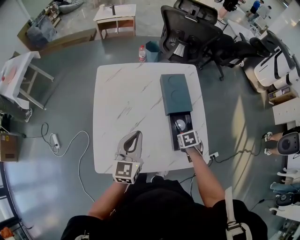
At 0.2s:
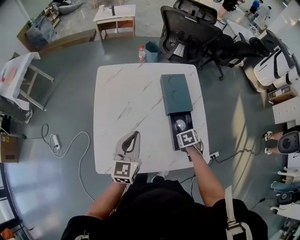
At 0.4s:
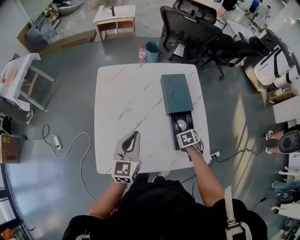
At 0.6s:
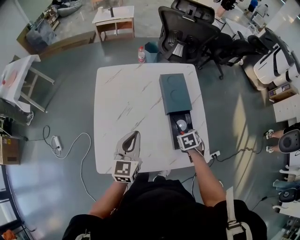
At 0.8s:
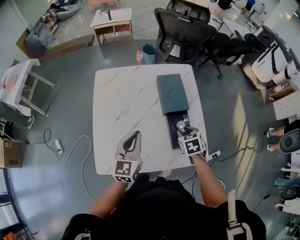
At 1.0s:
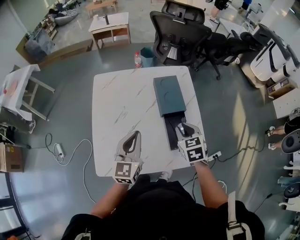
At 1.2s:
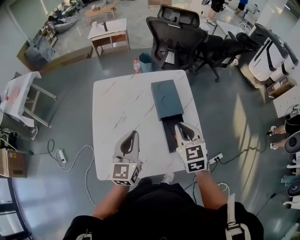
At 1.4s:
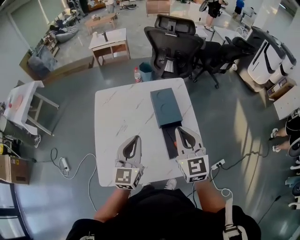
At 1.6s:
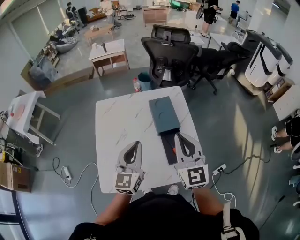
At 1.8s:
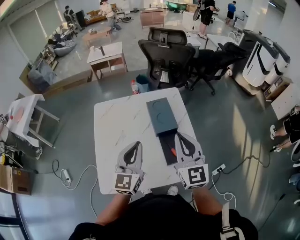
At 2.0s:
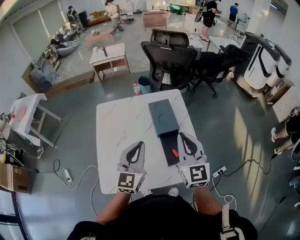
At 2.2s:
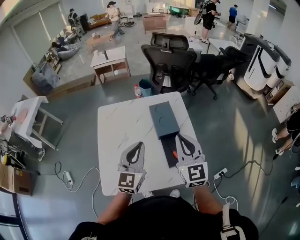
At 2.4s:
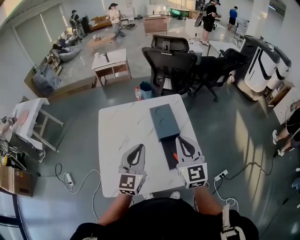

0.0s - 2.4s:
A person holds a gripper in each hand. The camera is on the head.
0.0s - 1.2s: The right gripper moves upward, roughly 25 cm, and angles its fingers upward, by approximately 40 degrees. Meanwhile the left gripper goes approximately 5 cm upward.
1.2s - 2.4s: The left gripper ends up about 5 cm from where it was; the right gripper moves upward, approximately 10 cm, and changes its angle by some 20 degrees.

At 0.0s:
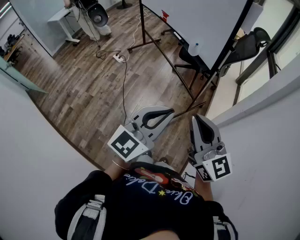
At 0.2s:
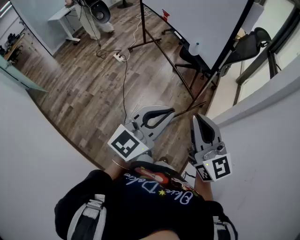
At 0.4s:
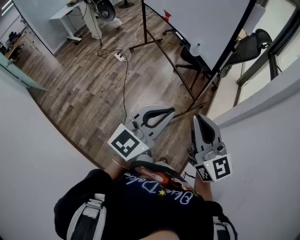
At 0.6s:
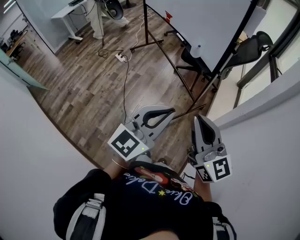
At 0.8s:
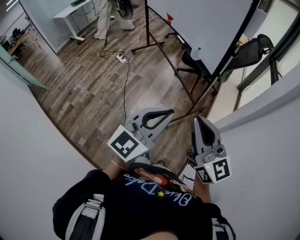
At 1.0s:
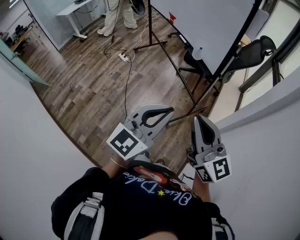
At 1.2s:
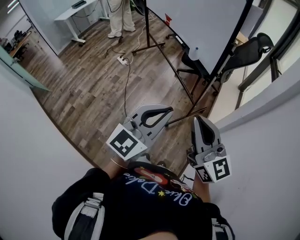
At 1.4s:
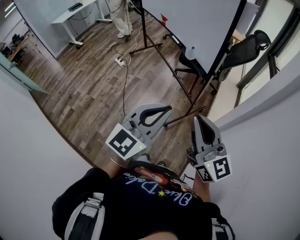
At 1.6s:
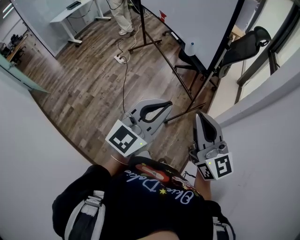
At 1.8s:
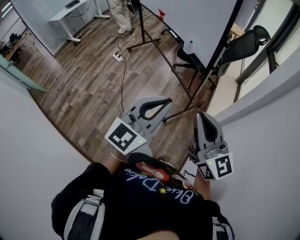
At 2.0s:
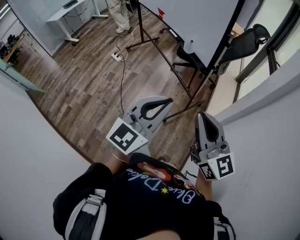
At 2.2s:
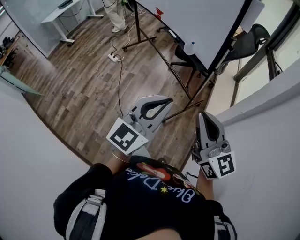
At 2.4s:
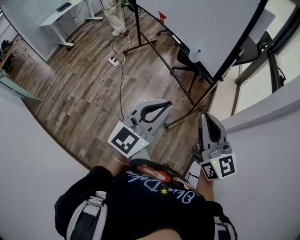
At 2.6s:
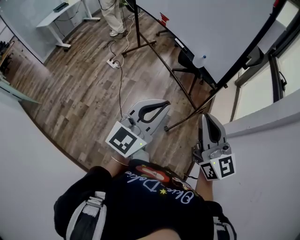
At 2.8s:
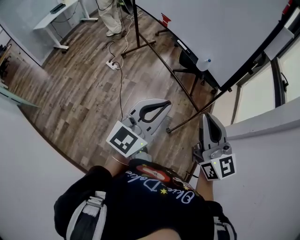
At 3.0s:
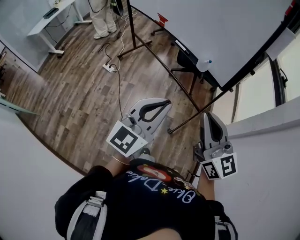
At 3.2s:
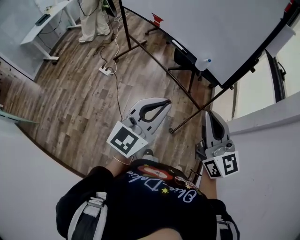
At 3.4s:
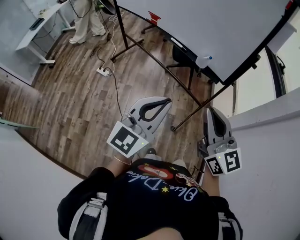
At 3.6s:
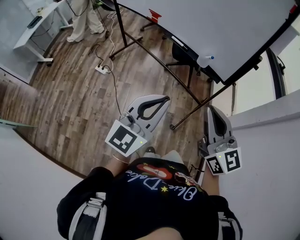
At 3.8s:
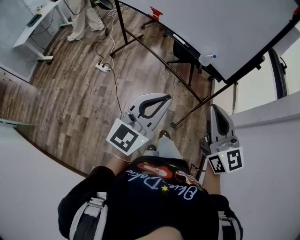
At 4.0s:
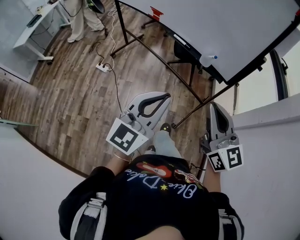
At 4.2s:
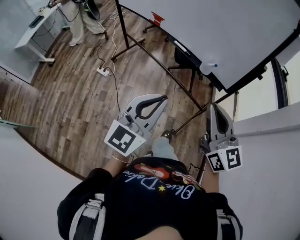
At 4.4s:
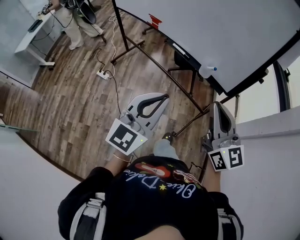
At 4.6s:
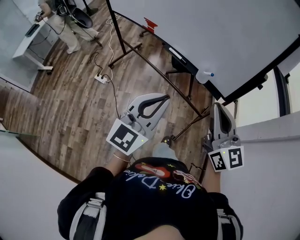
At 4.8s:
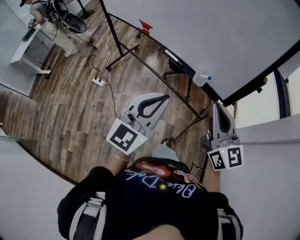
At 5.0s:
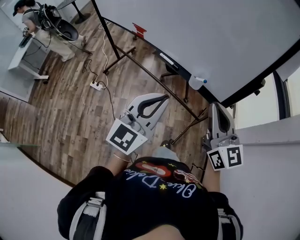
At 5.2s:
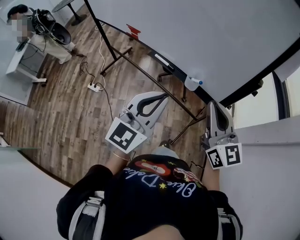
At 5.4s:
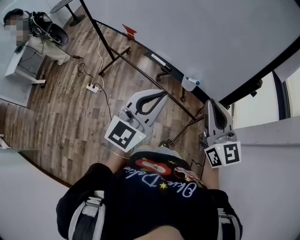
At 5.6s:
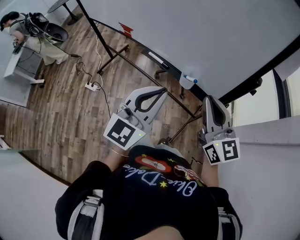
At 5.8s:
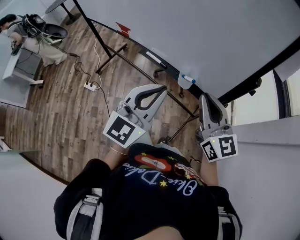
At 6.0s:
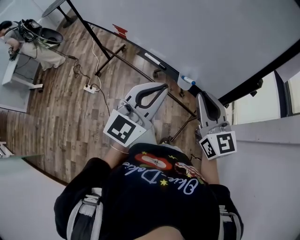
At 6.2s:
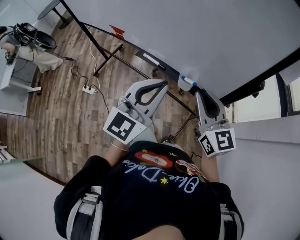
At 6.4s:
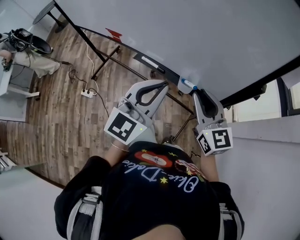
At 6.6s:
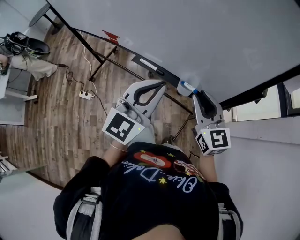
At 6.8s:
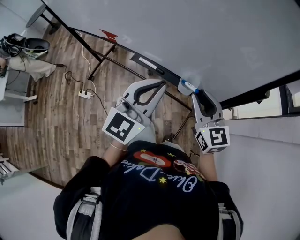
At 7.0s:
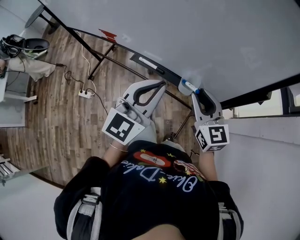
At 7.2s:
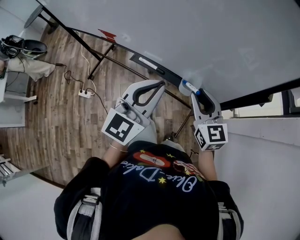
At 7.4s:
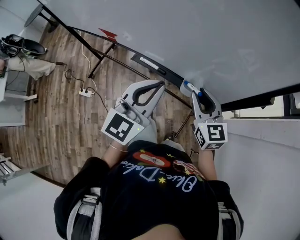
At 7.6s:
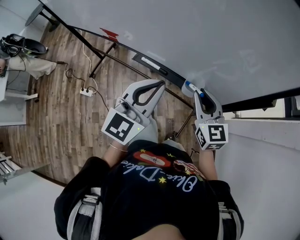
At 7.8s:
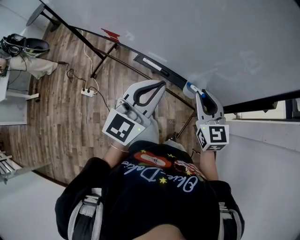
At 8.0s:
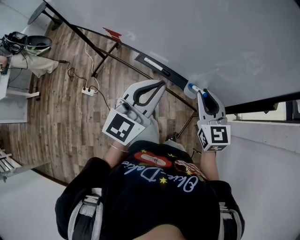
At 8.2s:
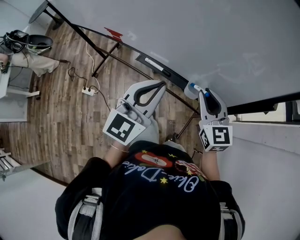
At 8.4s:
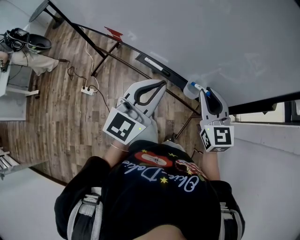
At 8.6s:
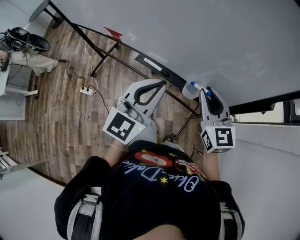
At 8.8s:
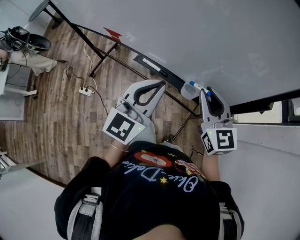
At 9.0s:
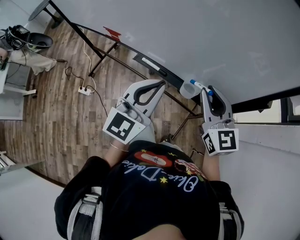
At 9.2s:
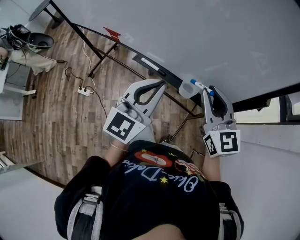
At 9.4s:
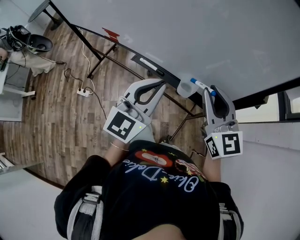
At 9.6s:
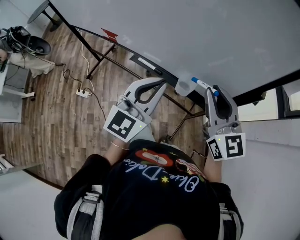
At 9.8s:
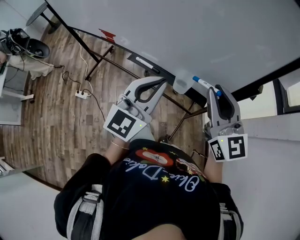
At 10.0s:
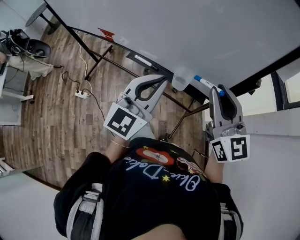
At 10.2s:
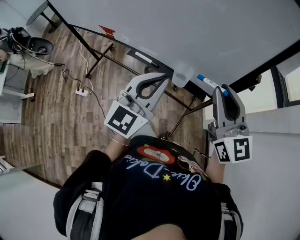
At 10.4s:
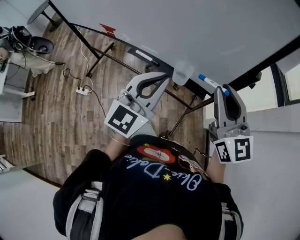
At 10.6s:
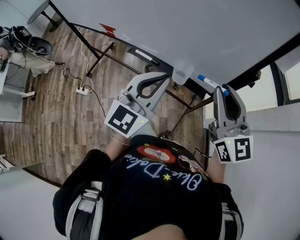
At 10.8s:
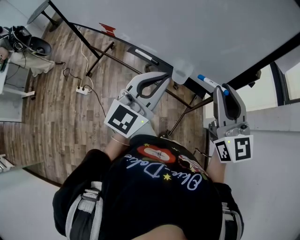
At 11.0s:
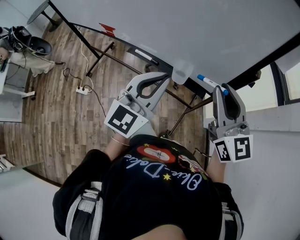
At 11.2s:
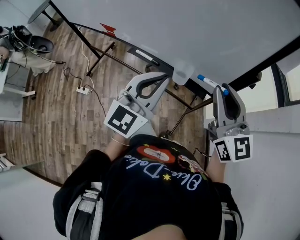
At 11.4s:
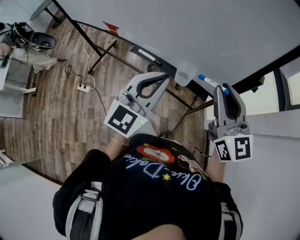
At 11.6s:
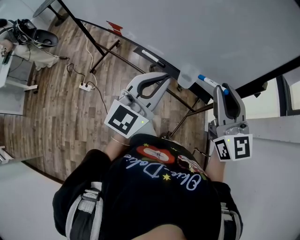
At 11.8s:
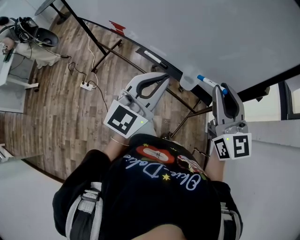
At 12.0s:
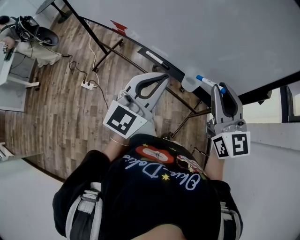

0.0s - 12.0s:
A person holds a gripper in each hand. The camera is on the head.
0.0s - 1.6s: The right gripper is displaced to the right by some 5 cm.
1.6s - 3.0s: The right gripper moves forward and to the left, about 20 cm; the left gripper goes roughly 25 cm to the left and forward.
3.0s - 4.4s: The left gripper is displaced forward and to the left by about 10 cm; the right gripper travels forward by some 10 cm.
4.4s - 6.0s: Both grippers move forward, some 20 cm.
6.0s - 7.6s: The right gripper moves downward and forward, some 10 cm; the left gripper heads forward, covering approximately 10 cm.
7.6s - 9.0s: The right gripper moves upward, about 10 cm.
9.0s - 10.4s: The left gripper goes approximately 5 cm to the right, while the right gripper moves upward, backward and to the right, some 10 cm.
10.4s - 12.0s: The right gripper ends up approximately 5 cm from where it was.

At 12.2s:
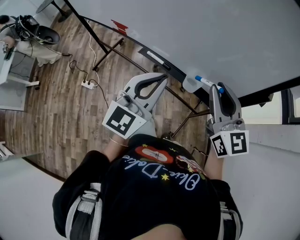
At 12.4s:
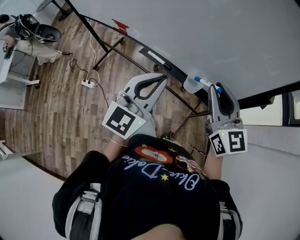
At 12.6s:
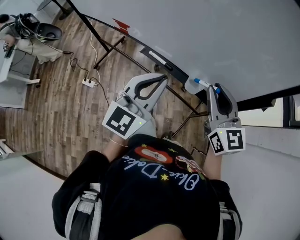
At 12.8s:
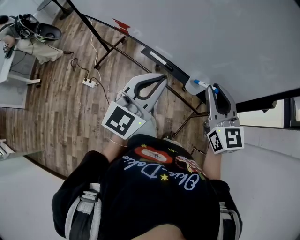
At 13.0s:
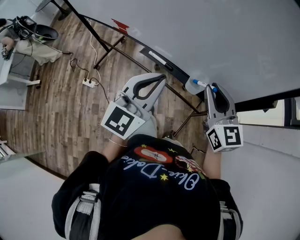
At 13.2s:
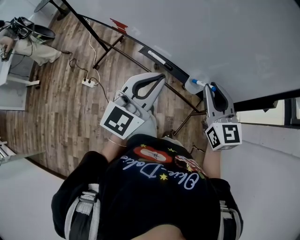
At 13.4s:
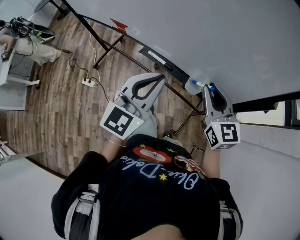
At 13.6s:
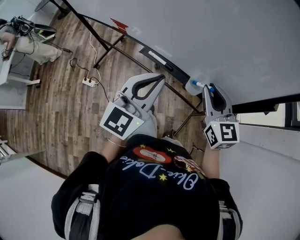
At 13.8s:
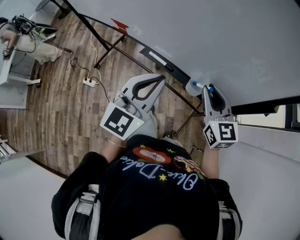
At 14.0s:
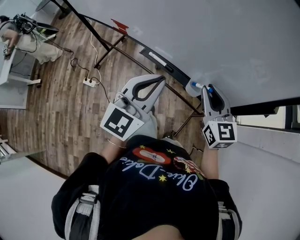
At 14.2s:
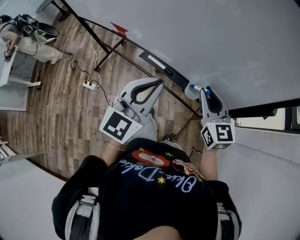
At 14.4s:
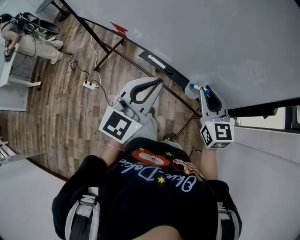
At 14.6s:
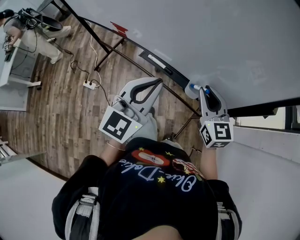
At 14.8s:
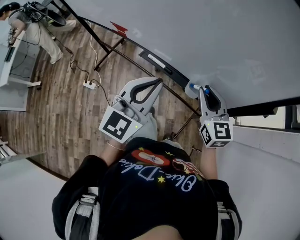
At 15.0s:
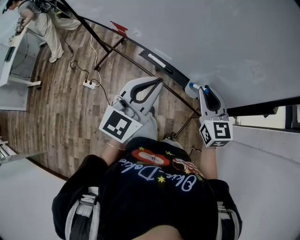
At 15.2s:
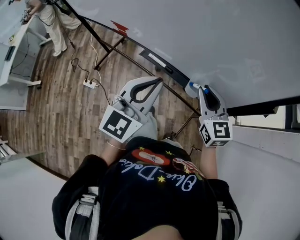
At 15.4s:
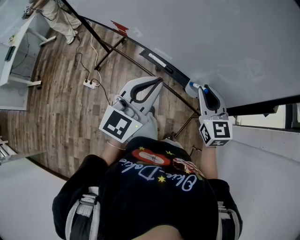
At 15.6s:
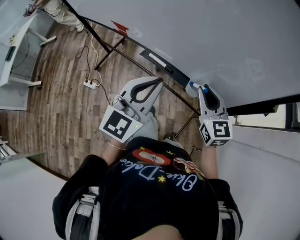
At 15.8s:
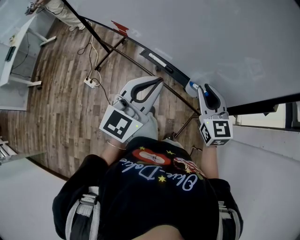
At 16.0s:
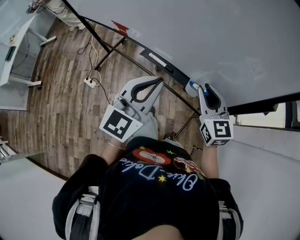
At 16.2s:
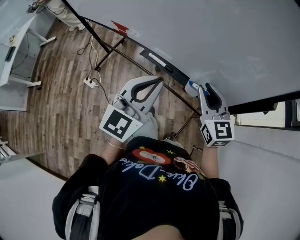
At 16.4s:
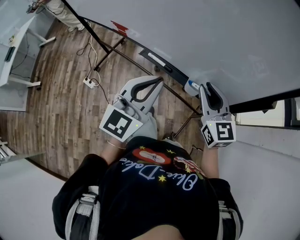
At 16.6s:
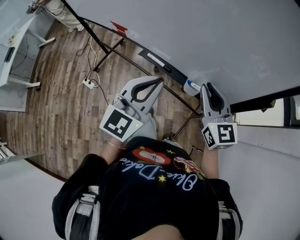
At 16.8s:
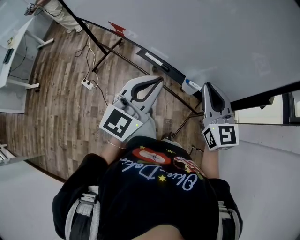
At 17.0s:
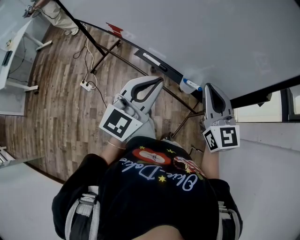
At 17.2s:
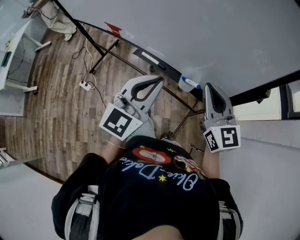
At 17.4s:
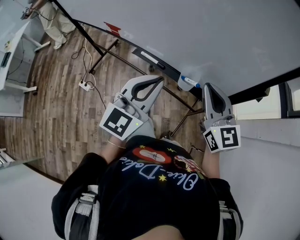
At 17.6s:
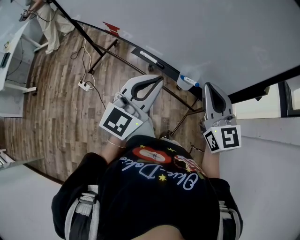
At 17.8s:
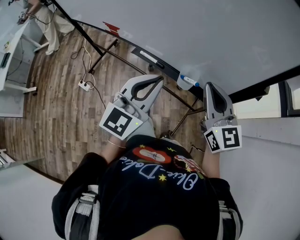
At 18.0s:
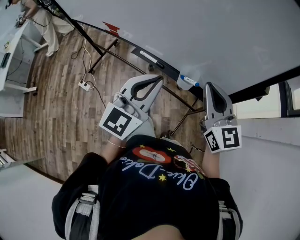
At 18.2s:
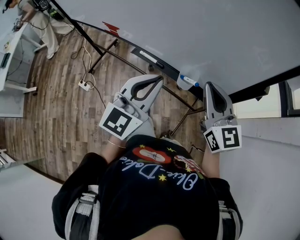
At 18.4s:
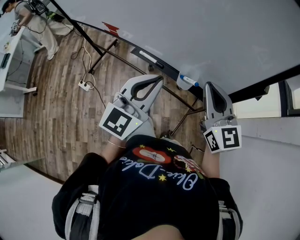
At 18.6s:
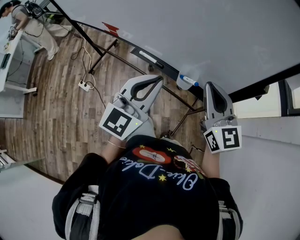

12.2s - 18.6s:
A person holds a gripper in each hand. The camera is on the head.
12.2s - 13.8s: The right gripper travels downward by about 10 cm.
13.8s - 15.4s: The grippers move only a little.
15.4s - 17.0s: The right gripper is displaced upward by approximately 5 cm.
17.0s - 18.6s: The grippers stay close to where they were, moving slightly.

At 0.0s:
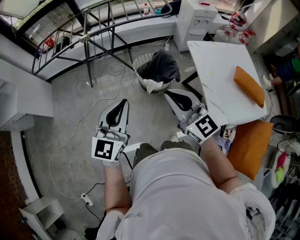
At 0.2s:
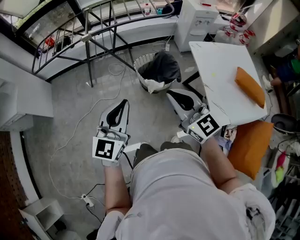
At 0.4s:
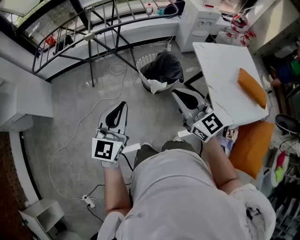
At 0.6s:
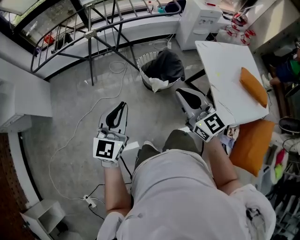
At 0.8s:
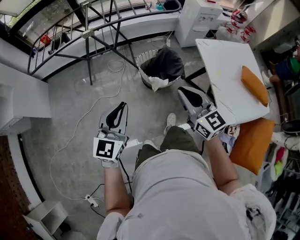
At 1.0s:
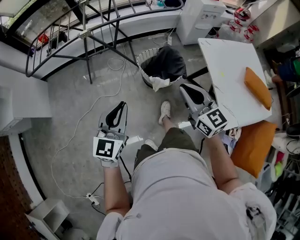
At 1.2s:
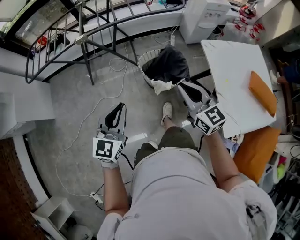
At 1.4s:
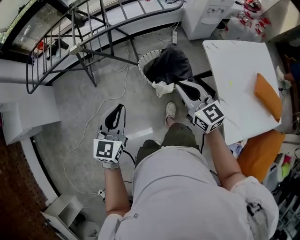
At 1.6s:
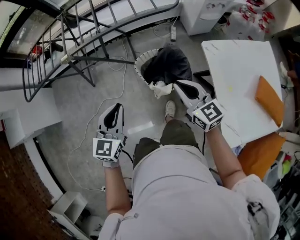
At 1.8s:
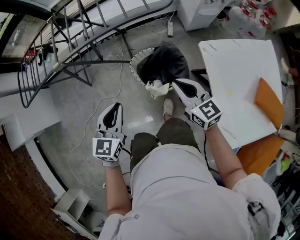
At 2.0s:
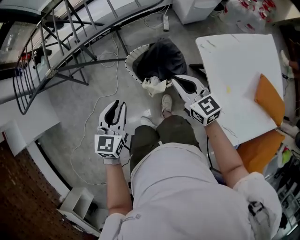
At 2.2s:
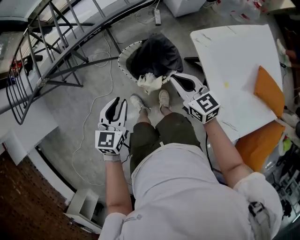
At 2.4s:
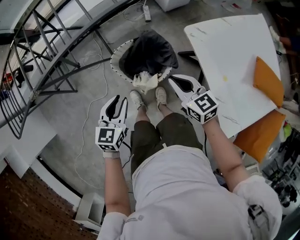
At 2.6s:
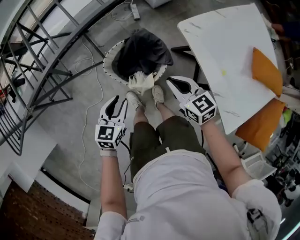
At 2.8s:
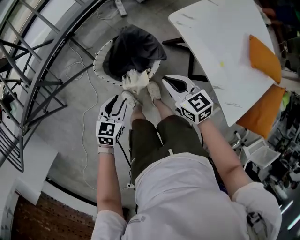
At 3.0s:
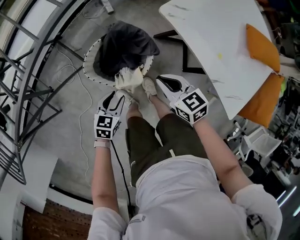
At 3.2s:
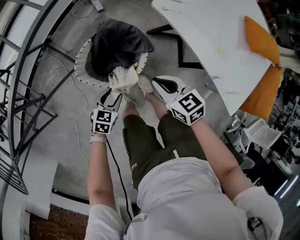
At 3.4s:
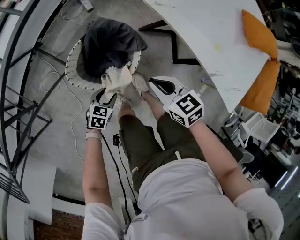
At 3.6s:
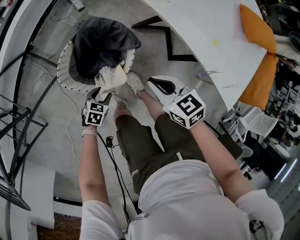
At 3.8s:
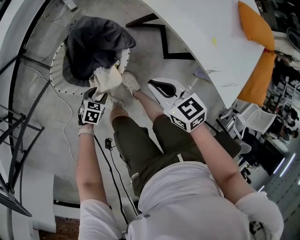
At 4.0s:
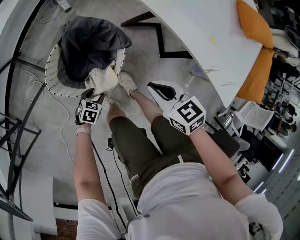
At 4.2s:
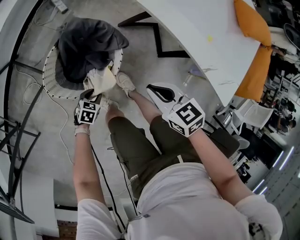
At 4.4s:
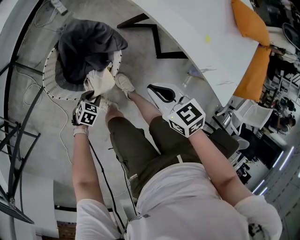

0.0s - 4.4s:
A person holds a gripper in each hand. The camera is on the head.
0.0s - 1.4s: Both grippers move forward and downward, about 25 cm.
1.4s - 3.0s: The grippers both shift downward by roughly 30 cm. The left gripper swivels roughly 50 degrees, and opens. Meanwhile the right gripper swivels roughly 40 degrees.
3.0s - 4.4s: The left gripper goes about 25 cm downward, and turns by approximately 30 degrees; the right gripper moves downward and to the right, approximately 10 cm.
